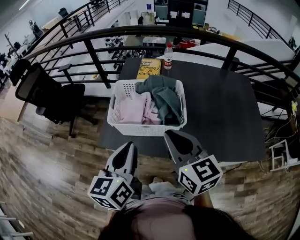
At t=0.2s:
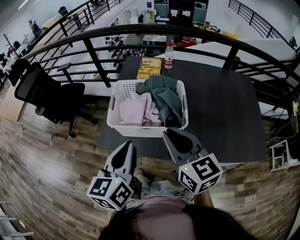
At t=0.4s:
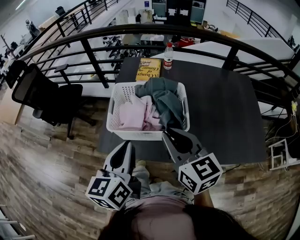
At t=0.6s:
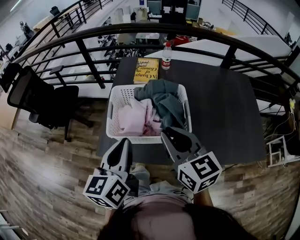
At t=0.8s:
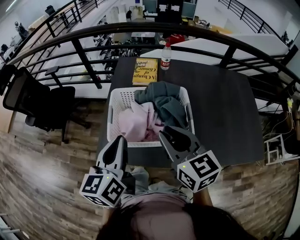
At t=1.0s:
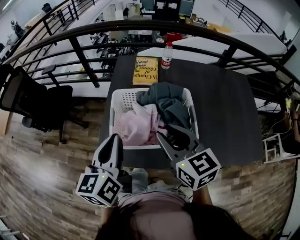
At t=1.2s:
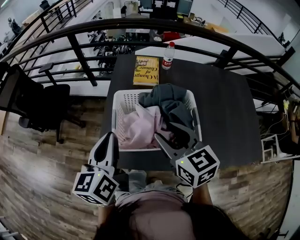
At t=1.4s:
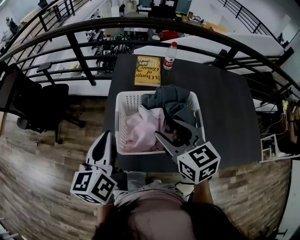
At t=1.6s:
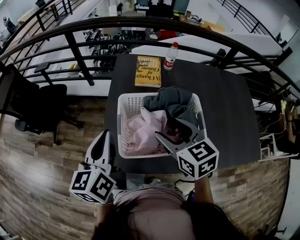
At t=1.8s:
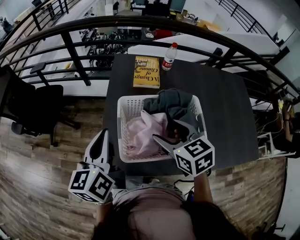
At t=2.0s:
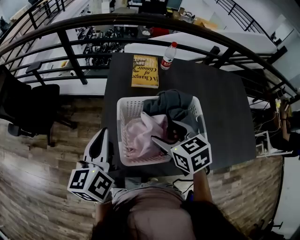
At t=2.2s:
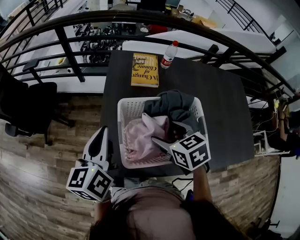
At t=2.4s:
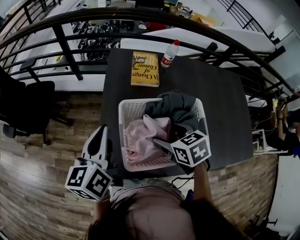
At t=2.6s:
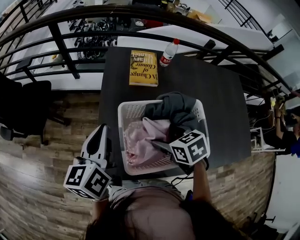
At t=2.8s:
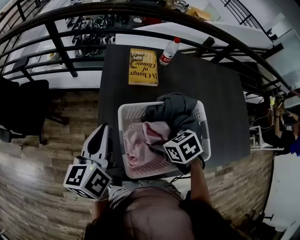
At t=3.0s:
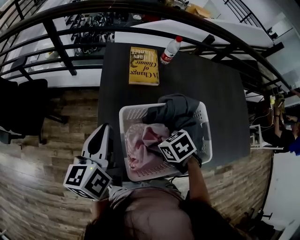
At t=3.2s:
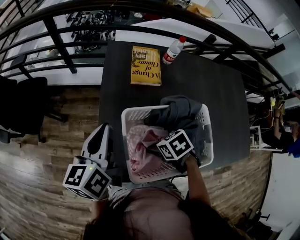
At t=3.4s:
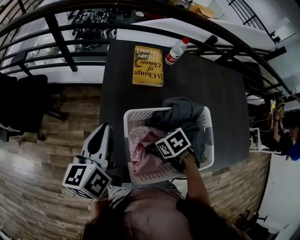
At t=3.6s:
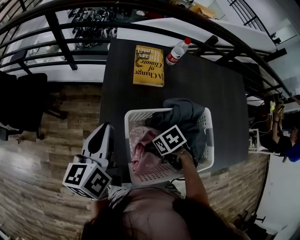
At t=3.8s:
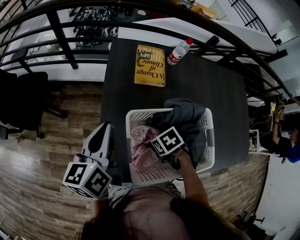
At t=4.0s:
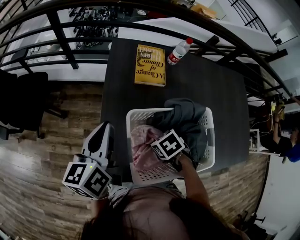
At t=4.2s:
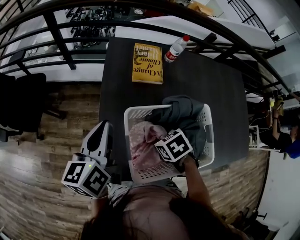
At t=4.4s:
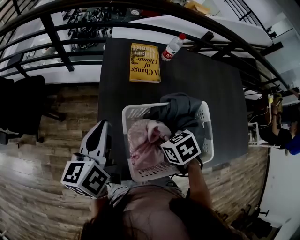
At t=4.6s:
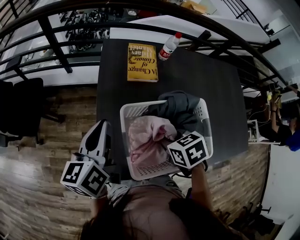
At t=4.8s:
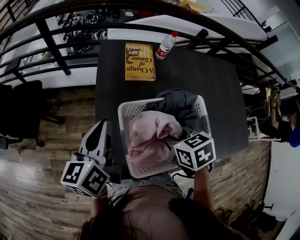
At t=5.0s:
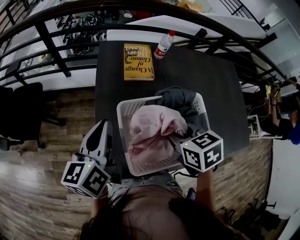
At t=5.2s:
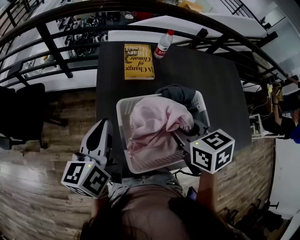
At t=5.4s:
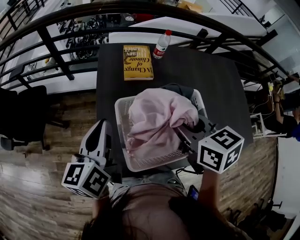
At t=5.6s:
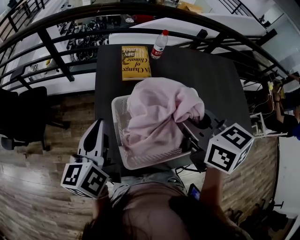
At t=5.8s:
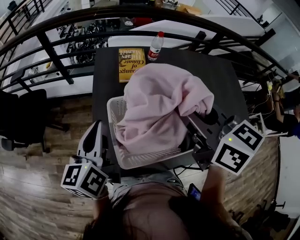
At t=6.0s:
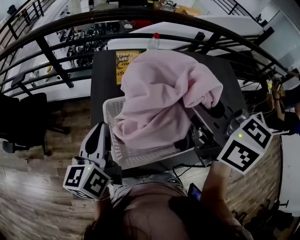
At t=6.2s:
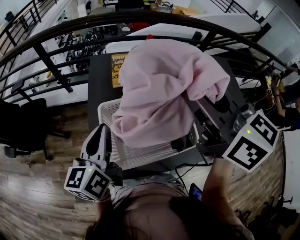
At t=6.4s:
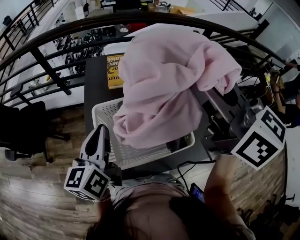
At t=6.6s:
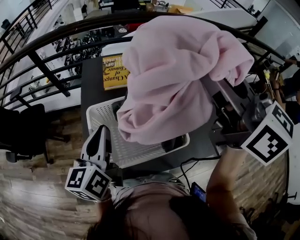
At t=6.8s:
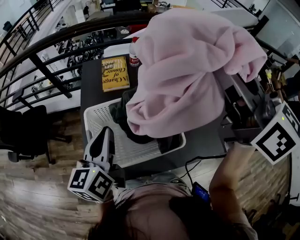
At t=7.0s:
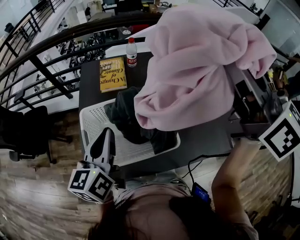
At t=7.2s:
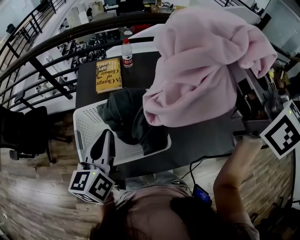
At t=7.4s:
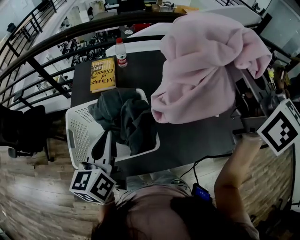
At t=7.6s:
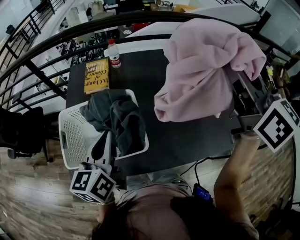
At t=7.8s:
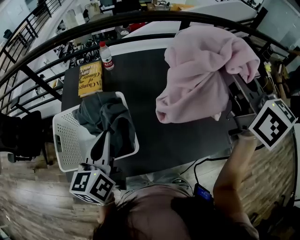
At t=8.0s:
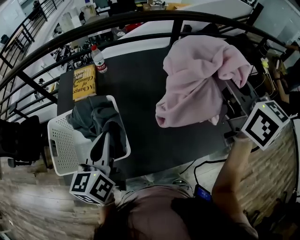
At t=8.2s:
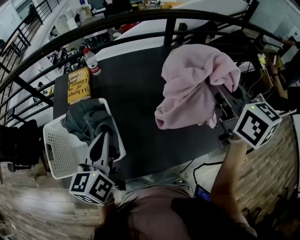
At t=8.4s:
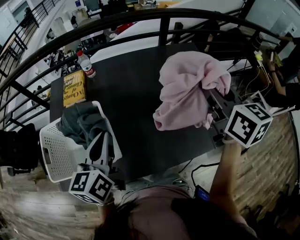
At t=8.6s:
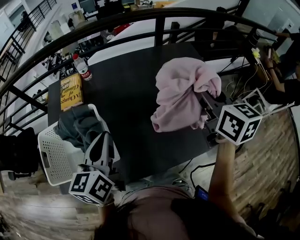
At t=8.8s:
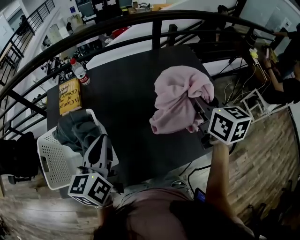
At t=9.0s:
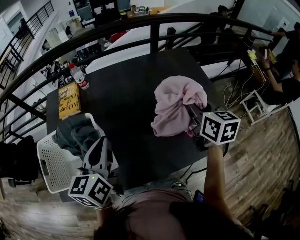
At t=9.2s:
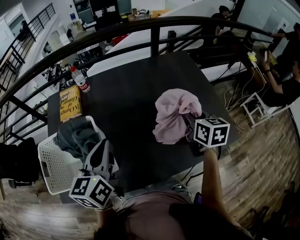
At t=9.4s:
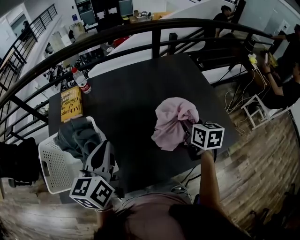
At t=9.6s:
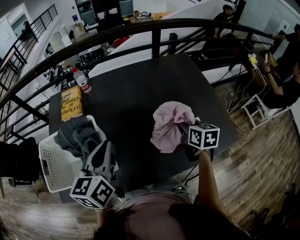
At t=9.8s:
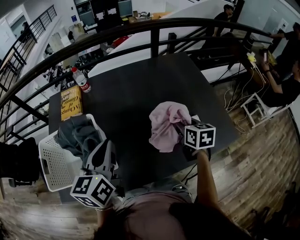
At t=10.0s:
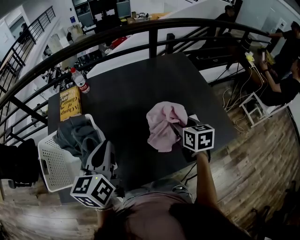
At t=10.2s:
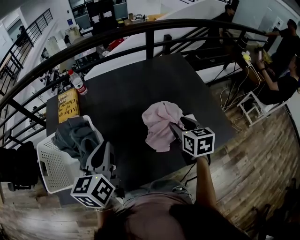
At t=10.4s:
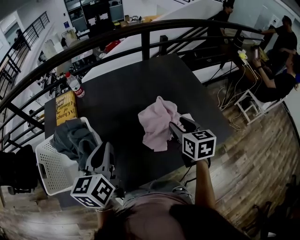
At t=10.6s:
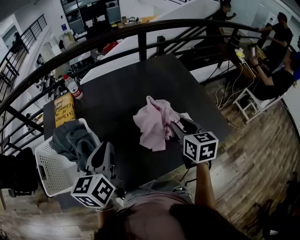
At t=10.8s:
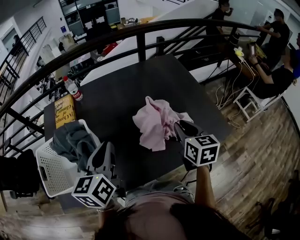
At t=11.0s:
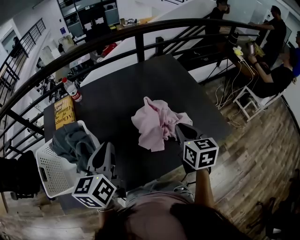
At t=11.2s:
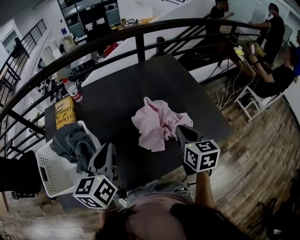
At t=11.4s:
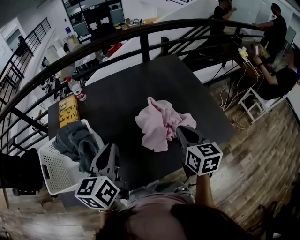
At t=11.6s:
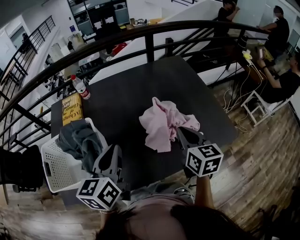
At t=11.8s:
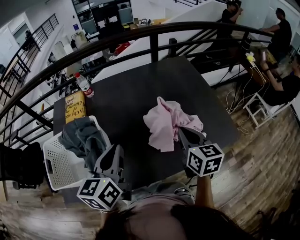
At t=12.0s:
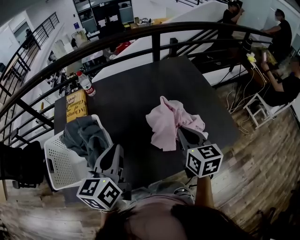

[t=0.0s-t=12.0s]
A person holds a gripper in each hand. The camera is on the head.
t=0.0s to t=1.6s: The left gripper heads forward and to the left, covering approximately 25 cm; the right gripper heads forward, covering some 20 cm, and opens its fingers.
t=1.6s to t=3.0s: The left gripper shifts about 10 cm forward. Meanwhile the right gripper goes some 15 cm downward, and angles its fingers downward, by roughly 40 degrees.
t=3.0s to t=4.4s: The right gripper moves roughly 5 cm downward and comes back, and closes.
t=4.4s to t=6.0s: The right gripper moves upward, some 30 cm, and angles its fingers upward, by some 50 degrees. The left gripper shifts about 10 cm backward and to the right.
t=6.0s to t=7.6s: Both grippers travel together to the right, roughly 30 cm.
t=7.6s to t=9.0s: The right gripper travels downward and to the right by roughly 30 cm, and swivels about 30 degrees. The left gripper shifts approximately 15 cm to the right.
t=9.0s to t=10.4s: The right gripper goes about 10 cm downward and backward.
t=10.4s to t=12.0s: The right gripper ends up roughly 5 cm from where it was, and closes up.

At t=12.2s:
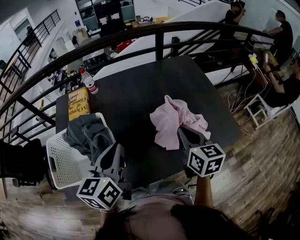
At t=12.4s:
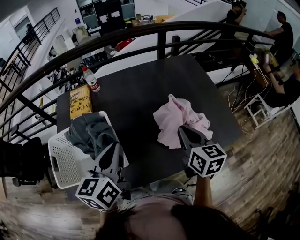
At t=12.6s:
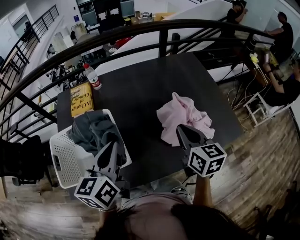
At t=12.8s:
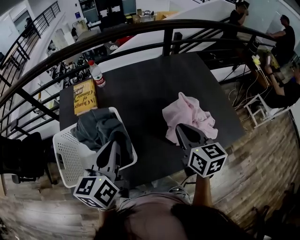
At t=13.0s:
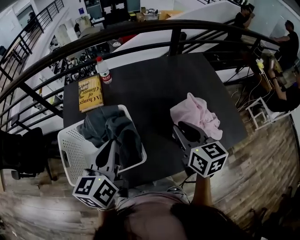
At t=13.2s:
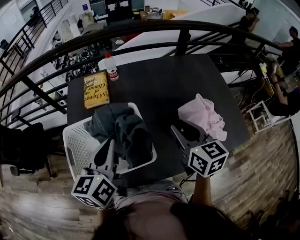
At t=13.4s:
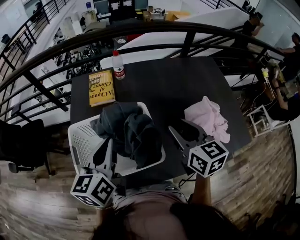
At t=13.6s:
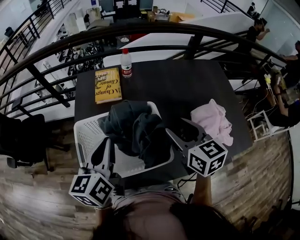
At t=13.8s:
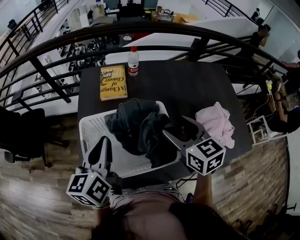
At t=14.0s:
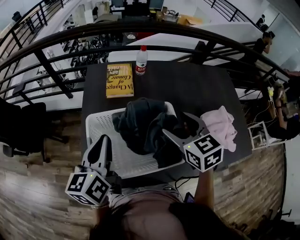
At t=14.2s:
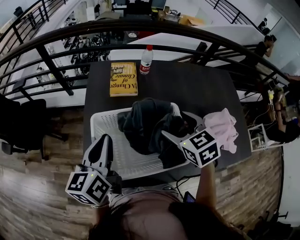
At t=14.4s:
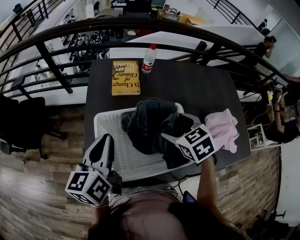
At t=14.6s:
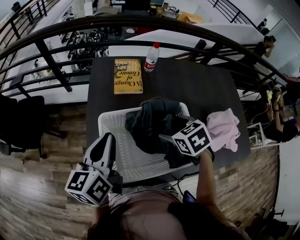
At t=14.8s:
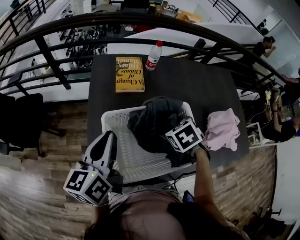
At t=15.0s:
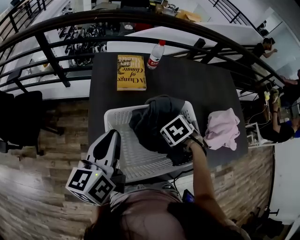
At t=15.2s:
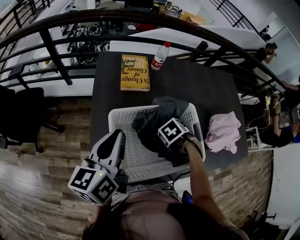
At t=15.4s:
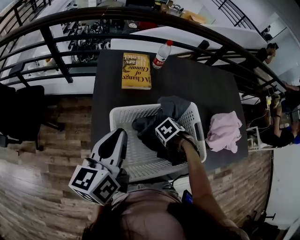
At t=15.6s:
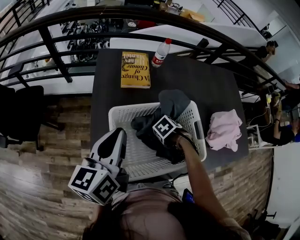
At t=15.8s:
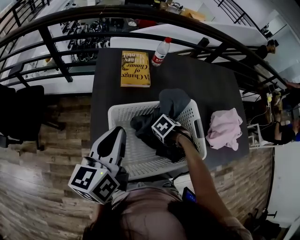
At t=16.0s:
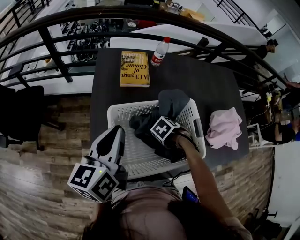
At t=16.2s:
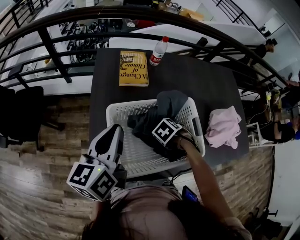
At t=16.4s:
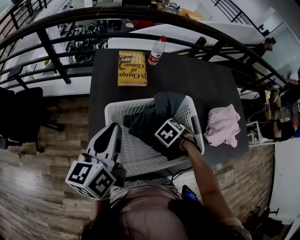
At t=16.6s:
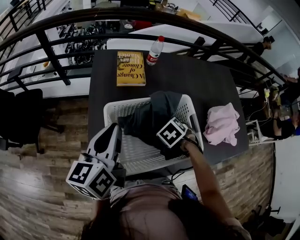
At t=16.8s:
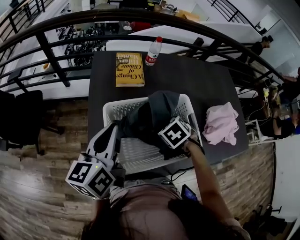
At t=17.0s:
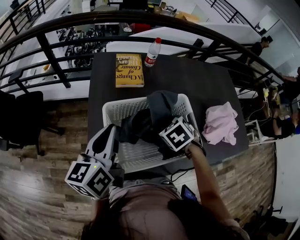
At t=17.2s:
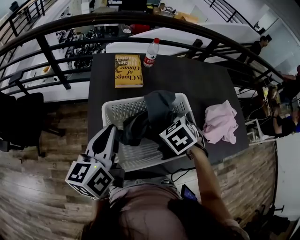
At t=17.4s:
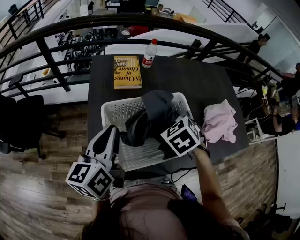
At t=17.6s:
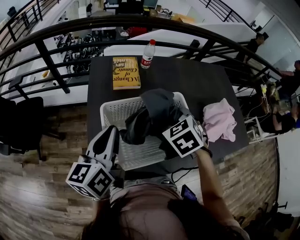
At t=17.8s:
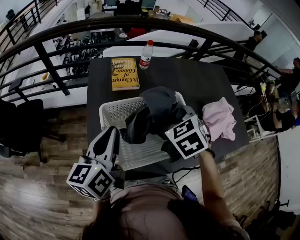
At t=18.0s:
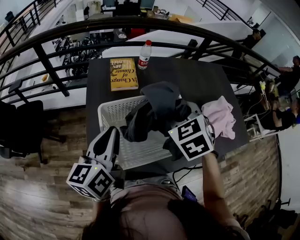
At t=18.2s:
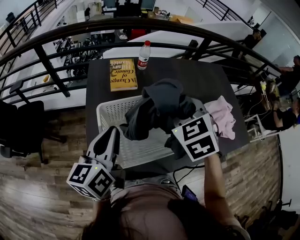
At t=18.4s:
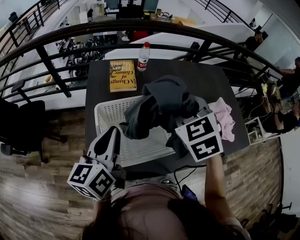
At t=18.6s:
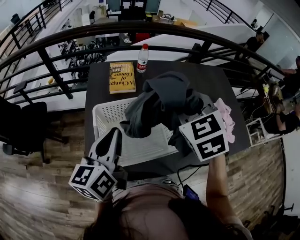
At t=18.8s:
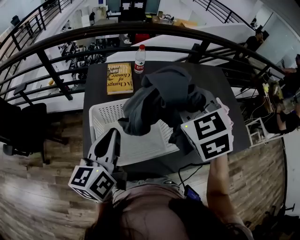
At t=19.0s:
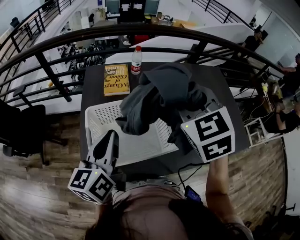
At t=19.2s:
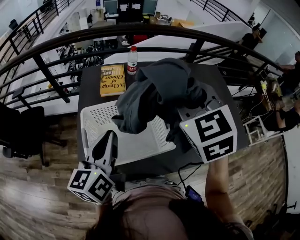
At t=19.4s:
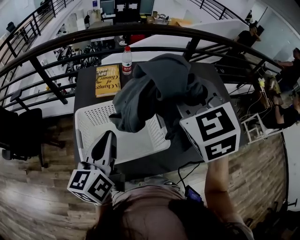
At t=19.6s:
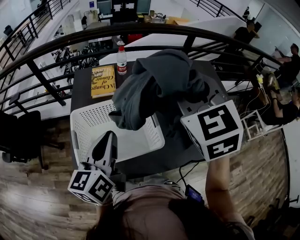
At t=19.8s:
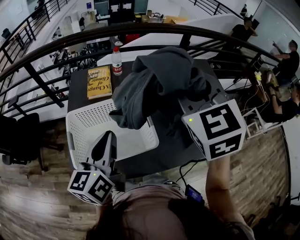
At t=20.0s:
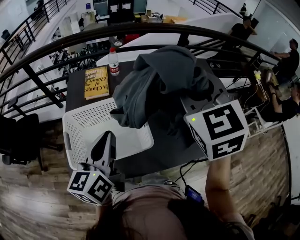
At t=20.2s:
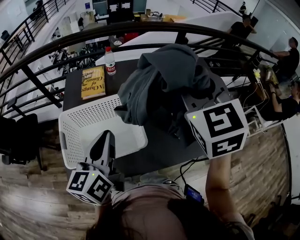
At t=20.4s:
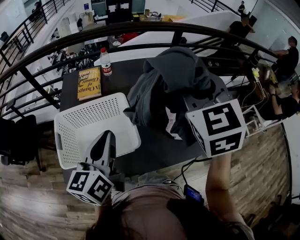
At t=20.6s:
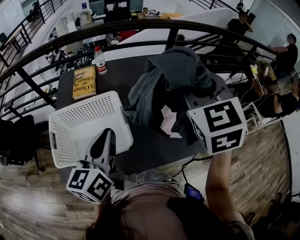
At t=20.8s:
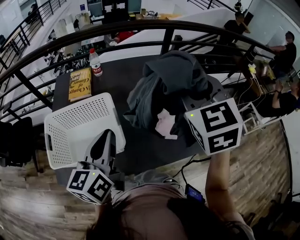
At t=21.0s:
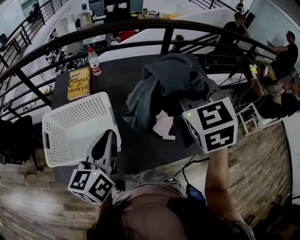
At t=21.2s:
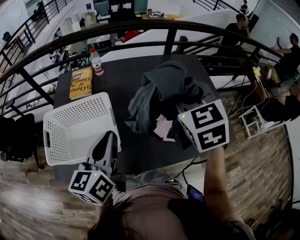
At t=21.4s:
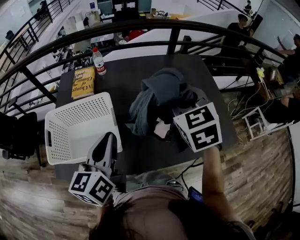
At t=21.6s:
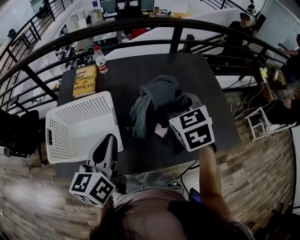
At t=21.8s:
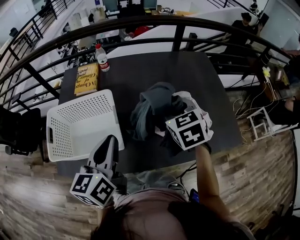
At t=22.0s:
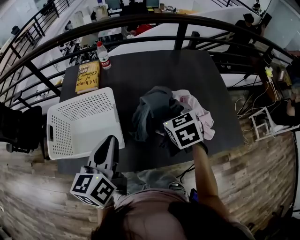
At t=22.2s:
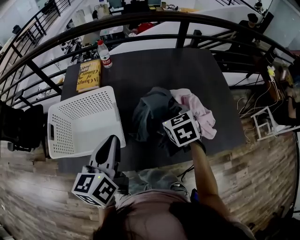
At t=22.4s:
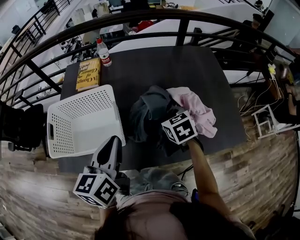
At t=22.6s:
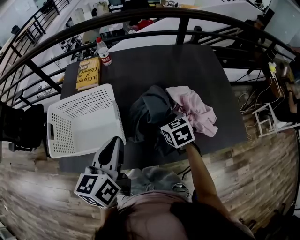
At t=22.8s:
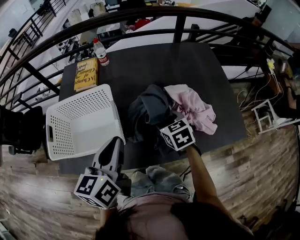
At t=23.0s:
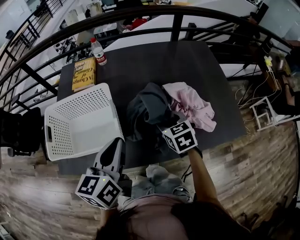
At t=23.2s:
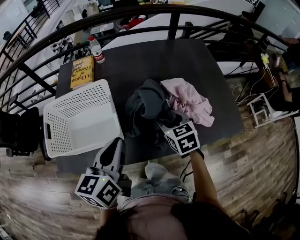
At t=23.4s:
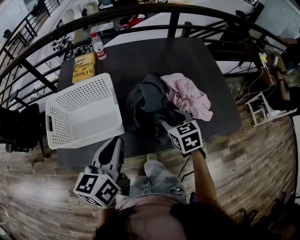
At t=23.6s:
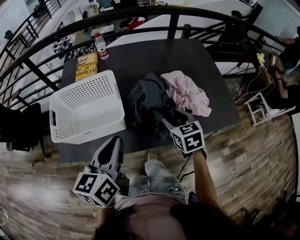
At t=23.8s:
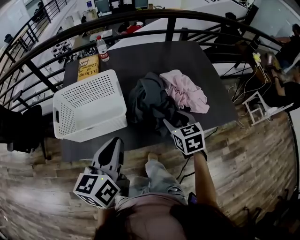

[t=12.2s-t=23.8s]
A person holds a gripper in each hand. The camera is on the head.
t=12.2s to t=13.6s: The grippers both shift to the left by approximately 25 cm. The right gripper changes its angle by some 20 degrees, and opens.
t=13.6s to t=15.0s: The left gripper shifts by roughly 15 cm, while the right gripper shifts about 20 cm downward, tilts its fingers some 60 degrees downward, and opens up.
t=15.0s to t=16.6s: The right gripper travels downward and back again, roughly 10 cm each way, and closes up.
t=16.6s to t=18.0s: The right gripper is displaced upward by some 20 cm, and tips its fingers upward by some 40 degrees.
t=18.0s to t=19.4s: The right gripper travels upward and to the right by some 20 cm, and changes its angle by roughly 20 degrees; the left gripper is displaced to the right by approximately 10 cm.
t=19.4s to t=21.0s: The grippers both shift to the right by approximately 20 cm.
t=21.0s to t=22.4s: The right gripper is displaced downward by about 25 cm, and turns by about 30 degrees.
t=22.4s to t=23.8s: The grippers both shift backward by some 15 cm.
